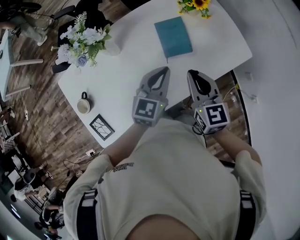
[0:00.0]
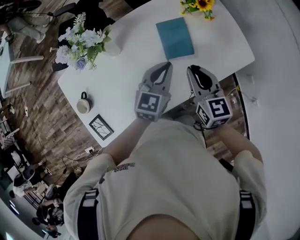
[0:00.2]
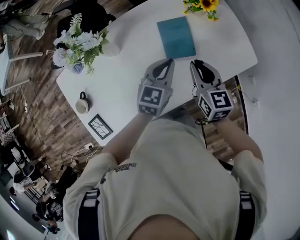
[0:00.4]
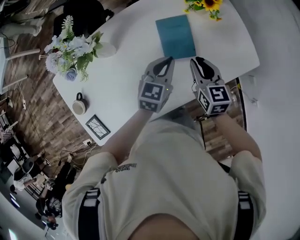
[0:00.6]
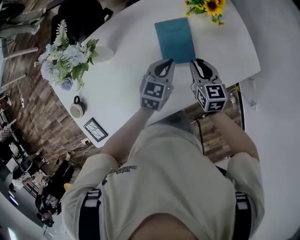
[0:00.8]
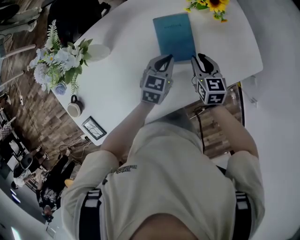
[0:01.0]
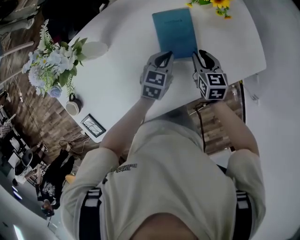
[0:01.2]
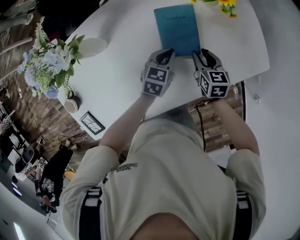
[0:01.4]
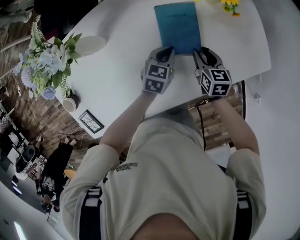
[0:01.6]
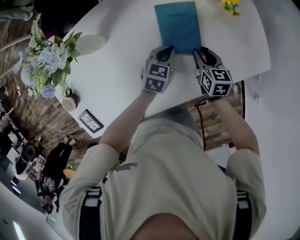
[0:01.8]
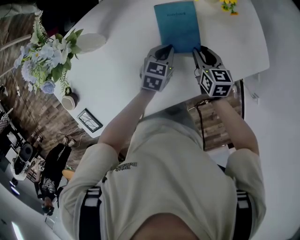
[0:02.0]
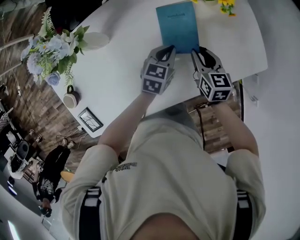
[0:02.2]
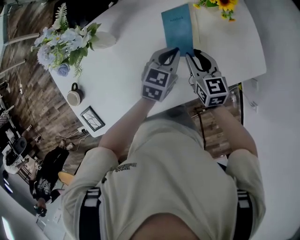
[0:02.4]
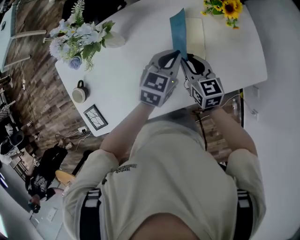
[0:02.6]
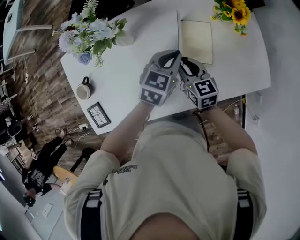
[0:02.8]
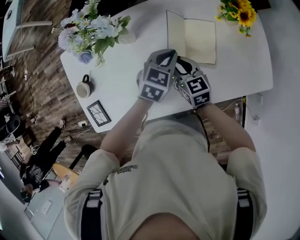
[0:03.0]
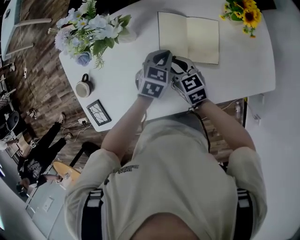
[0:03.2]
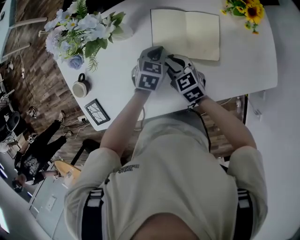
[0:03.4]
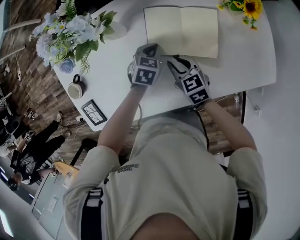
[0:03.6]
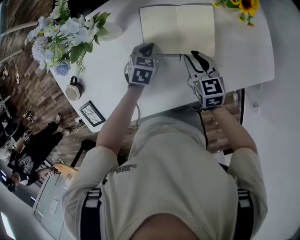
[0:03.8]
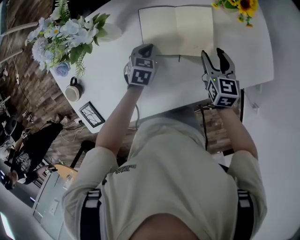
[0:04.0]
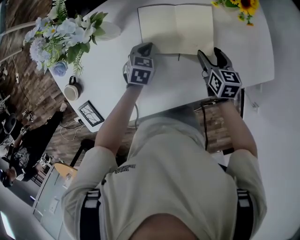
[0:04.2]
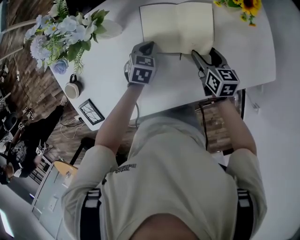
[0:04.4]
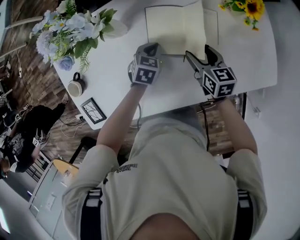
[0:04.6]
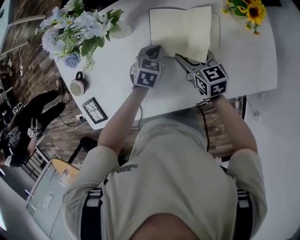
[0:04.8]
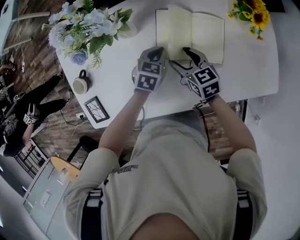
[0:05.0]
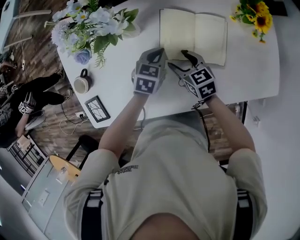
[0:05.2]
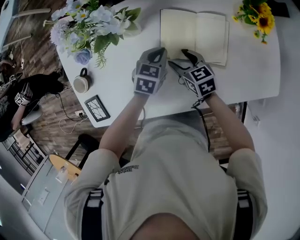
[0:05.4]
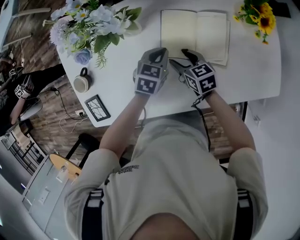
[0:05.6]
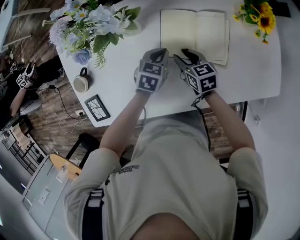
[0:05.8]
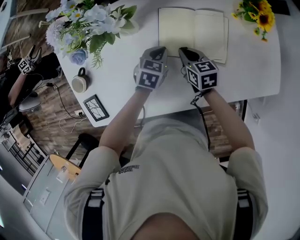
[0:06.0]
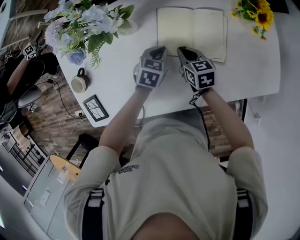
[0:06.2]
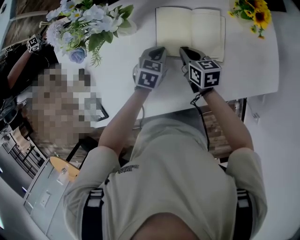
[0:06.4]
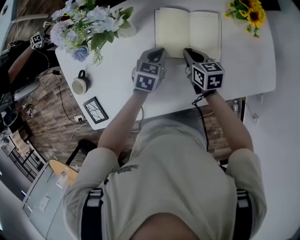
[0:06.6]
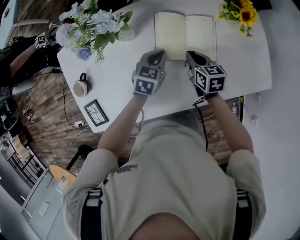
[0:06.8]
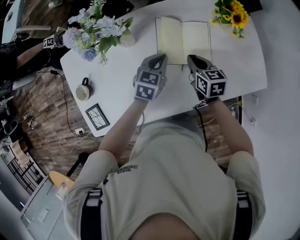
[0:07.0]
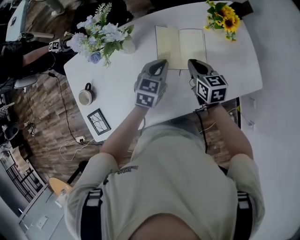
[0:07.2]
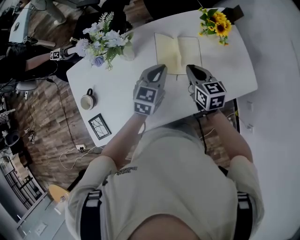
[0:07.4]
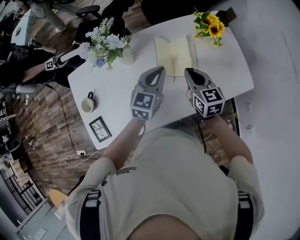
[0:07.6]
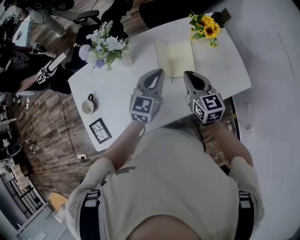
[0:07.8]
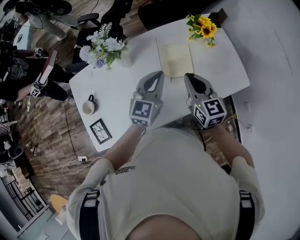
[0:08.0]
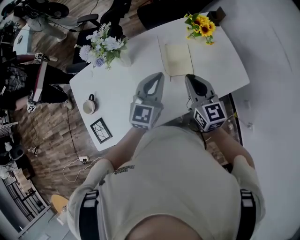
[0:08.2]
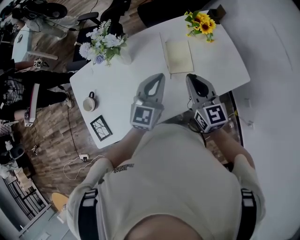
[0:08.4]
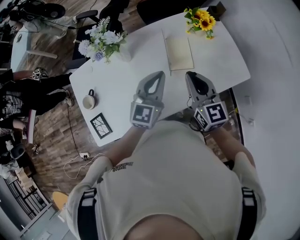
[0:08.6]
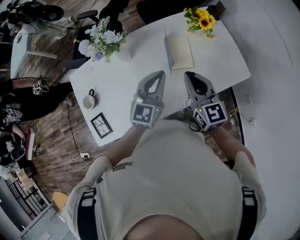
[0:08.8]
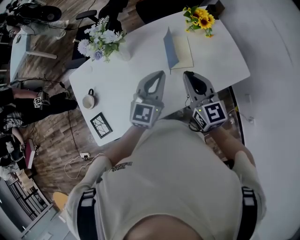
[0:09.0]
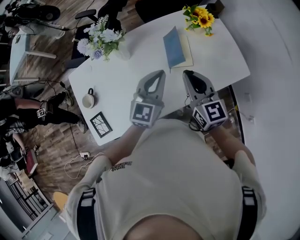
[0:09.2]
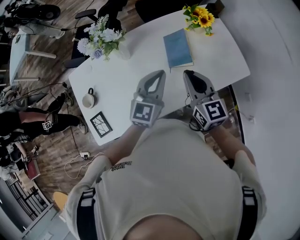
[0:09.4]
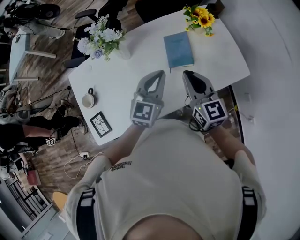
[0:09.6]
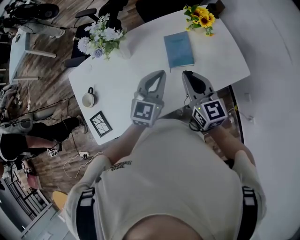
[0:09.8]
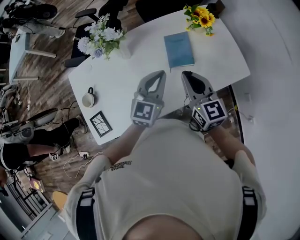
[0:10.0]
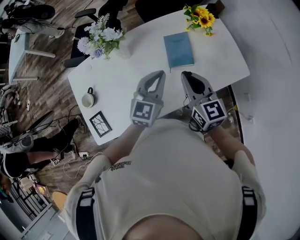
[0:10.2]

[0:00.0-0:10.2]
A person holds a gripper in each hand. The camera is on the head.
0.0 to 1.4 s: Both grippers travel together downward and forward, some 25 cm. The left gripper turns by roughly 20 degrees, while the right gripper changes its angle by approximately 20 degrees, and opens.
1.4 to 3.0 s: The right gripper is displaced to the left and upward by roughly 20 cm, and changes its angle by approximately 30 degrees. Meanwhile the left gripper goes some 15 cm upward and to the left.
3.0 to 4.4 s: The left gripper travels downward by about 15 cm. Meanwhile the right gripper is displaced to the right and downward by some 15 cm, swivels approximately 20 degrees, and opens.
4.4 to 5.8 s: The right gripper heads to the left, covering roughly 15 cm, rotates roughly 20 degrees, and closes its fingers.
5.8 to 7.2 s: Both grippers move upward and to the right, roughly 15 cm. The right gripper closes.
7.2 to 8.8 s: The grippers both shift upward and backward by roughly 20 cm. The left gripper swivels roughly 30 degrees; the right gripper rotates some 30 degrees.
8.8 to 10.2 s: There are only small adjustments of the grippers.

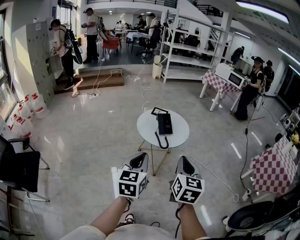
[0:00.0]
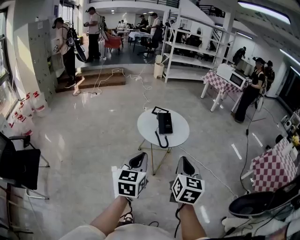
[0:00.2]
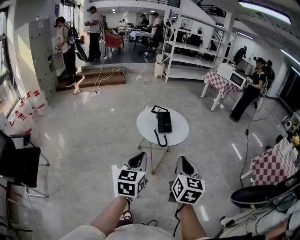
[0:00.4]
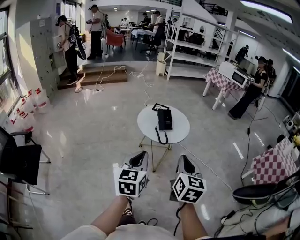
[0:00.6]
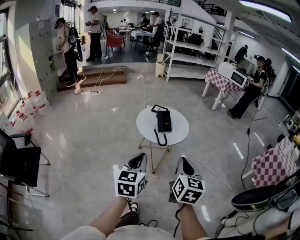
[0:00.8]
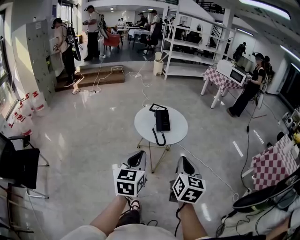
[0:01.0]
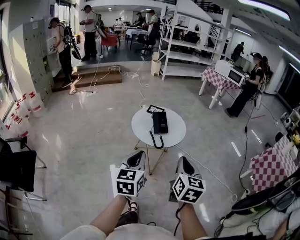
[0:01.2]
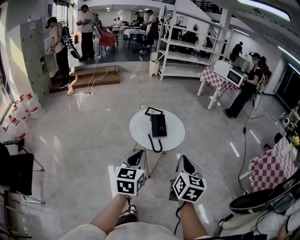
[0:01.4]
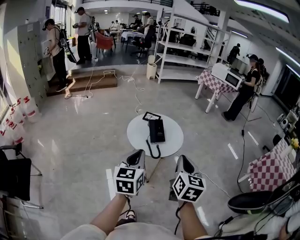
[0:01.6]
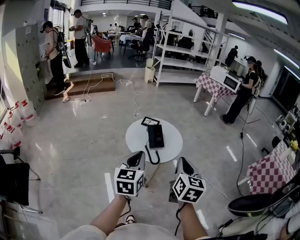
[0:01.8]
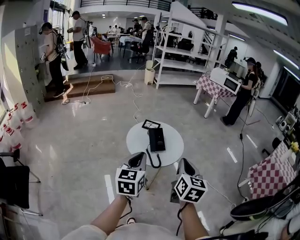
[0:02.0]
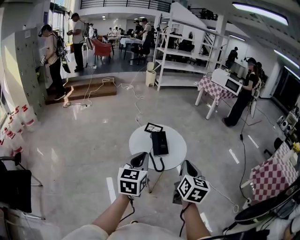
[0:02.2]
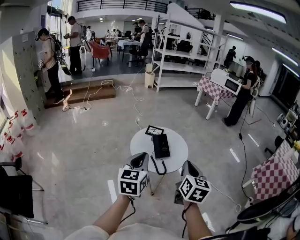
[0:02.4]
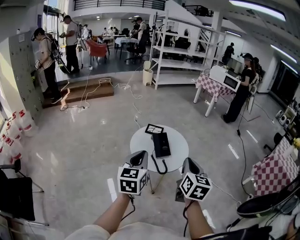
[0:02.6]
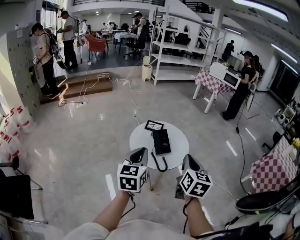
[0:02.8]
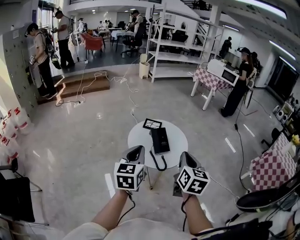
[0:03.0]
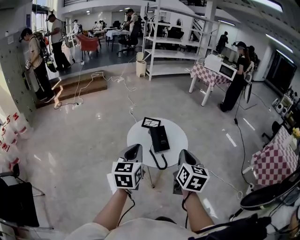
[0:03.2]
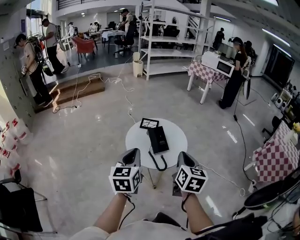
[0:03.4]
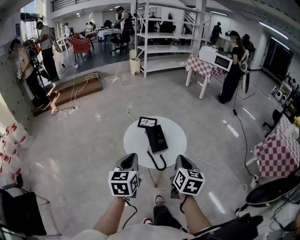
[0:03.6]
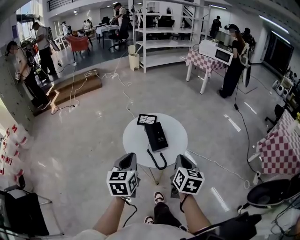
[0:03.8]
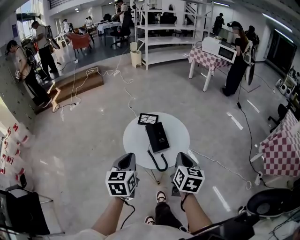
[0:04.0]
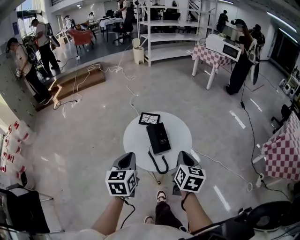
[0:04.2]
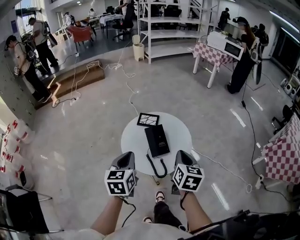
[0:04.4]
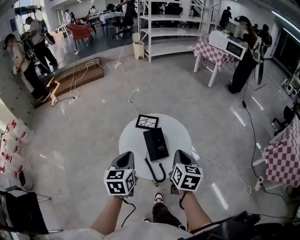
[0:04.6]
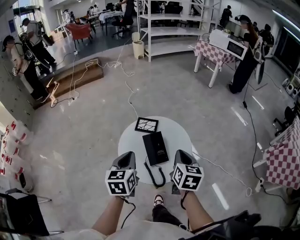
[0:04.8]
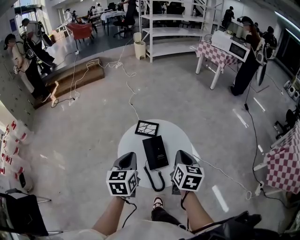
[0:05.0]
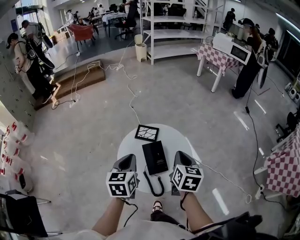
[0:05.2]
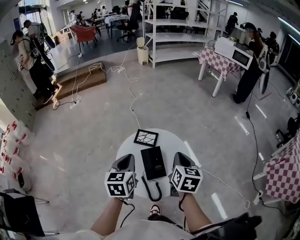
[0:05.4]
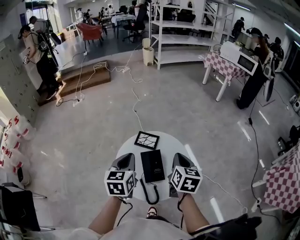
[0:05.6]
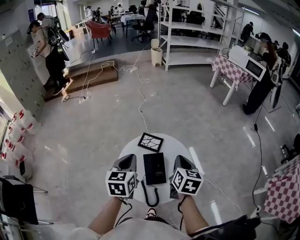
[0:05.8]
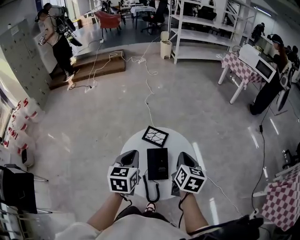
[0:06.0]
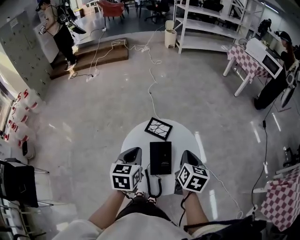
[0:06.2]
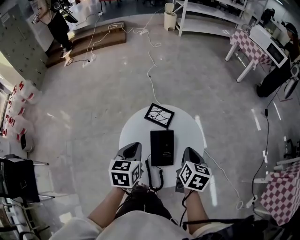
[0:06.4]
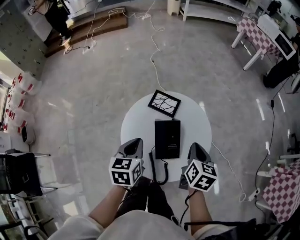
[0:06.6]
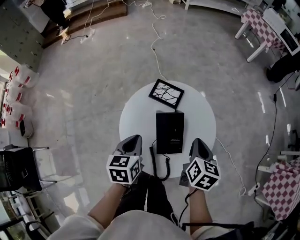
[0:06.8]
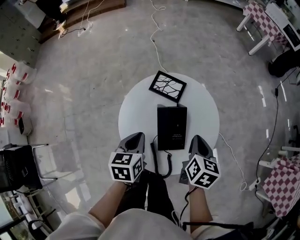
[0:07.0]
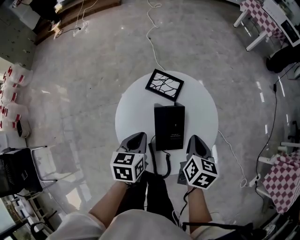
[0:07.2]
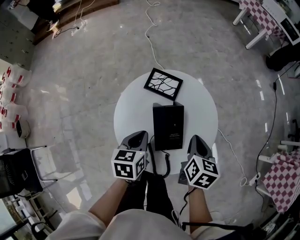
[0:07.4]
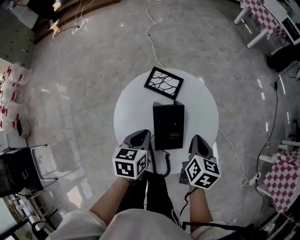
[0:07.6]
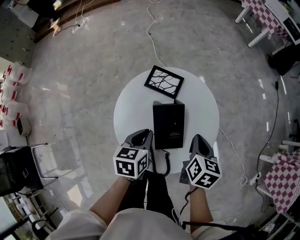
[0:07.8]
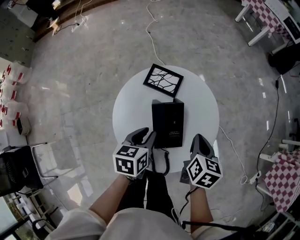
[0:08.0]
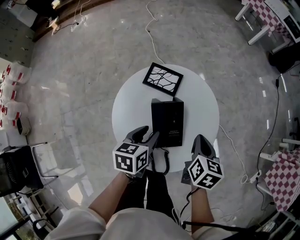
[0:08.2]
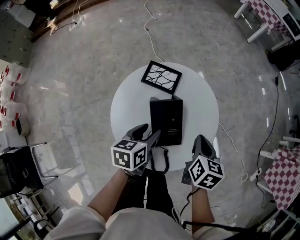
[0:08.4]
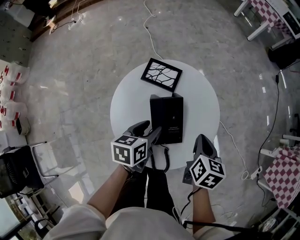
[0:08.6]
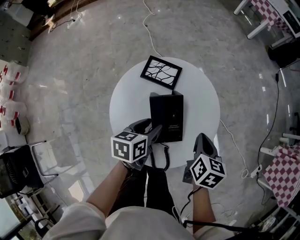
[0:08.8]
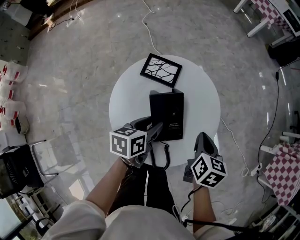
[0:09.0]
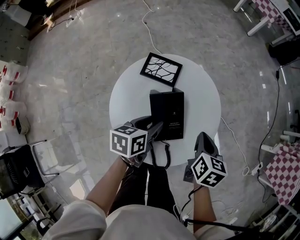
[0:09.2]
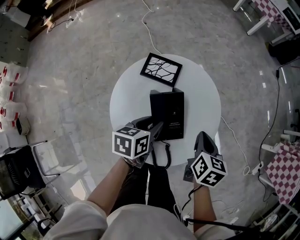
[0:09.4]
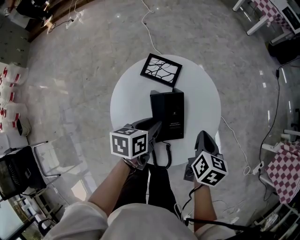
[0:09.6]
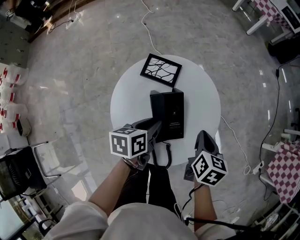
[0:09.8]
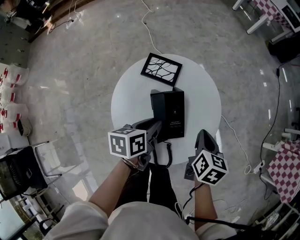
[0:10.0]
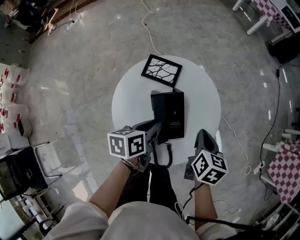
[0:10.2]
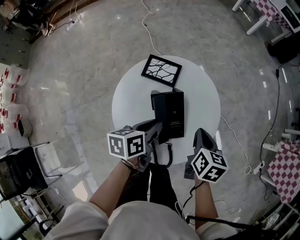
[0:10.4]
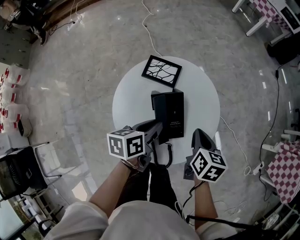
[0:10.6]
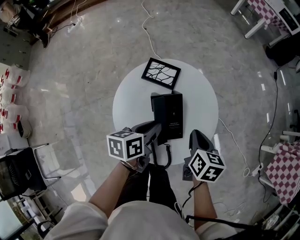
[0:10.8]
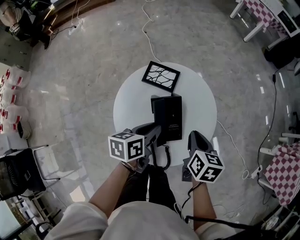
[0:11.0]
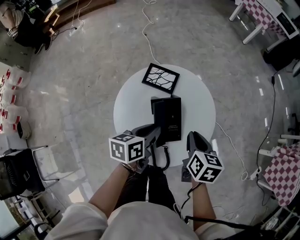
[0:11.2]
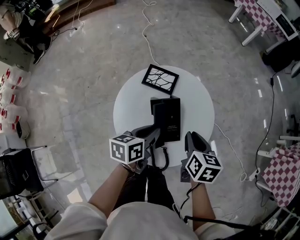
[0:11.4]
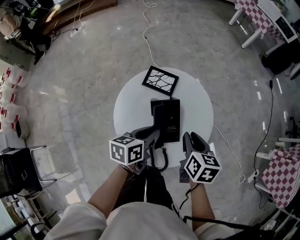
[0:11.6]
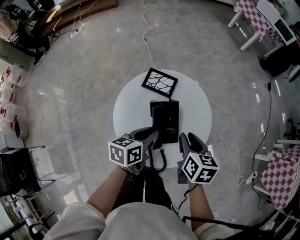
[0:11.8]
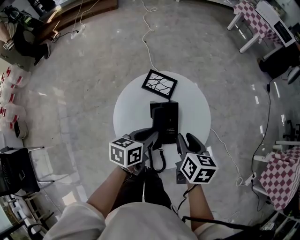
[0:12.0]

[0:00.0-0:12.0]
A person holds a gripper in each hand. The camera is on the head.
0.0 to 1.6 s: Both grippers move forward, roughly 10 cm.
1.6 to 3.0 s: The two grippers go about 10 cm forward and to the left.
3.0 to 4.4 s: Both grippers travel together forward and downward, roughly 15 cm.
4.4 to 6.0 s: Both grippers move forward, about 15 cm.
6.0 to 7.6 s: The two grippers go some 15 cm downward. The left gripper turns by roughly 20 degrees.
7.6 to 9.0 s: The left gripper changes place by roughly 5 cm, and opens up.
9.0 to 10.4 s: The left gripper closes its fingers.
10.4 to 12.0 s: The right gripper is displaced to the left by some 5 cm, and opens up.

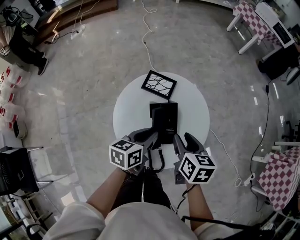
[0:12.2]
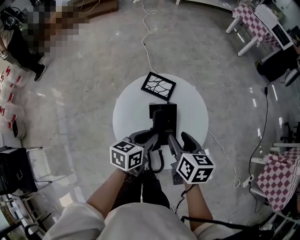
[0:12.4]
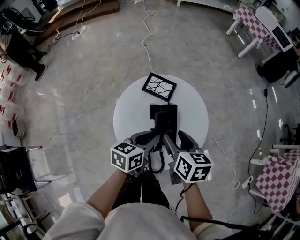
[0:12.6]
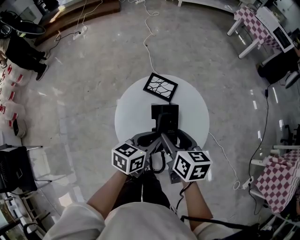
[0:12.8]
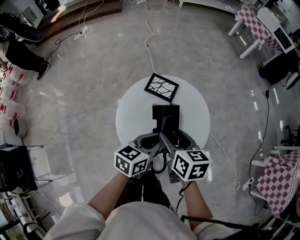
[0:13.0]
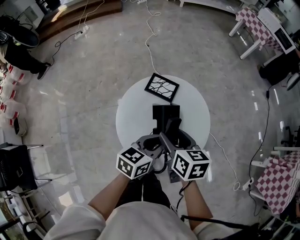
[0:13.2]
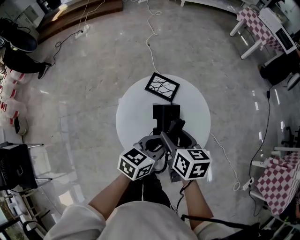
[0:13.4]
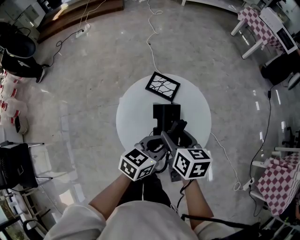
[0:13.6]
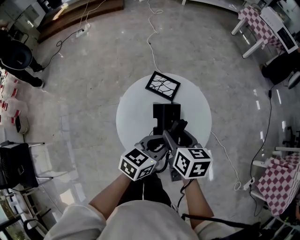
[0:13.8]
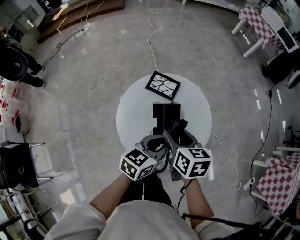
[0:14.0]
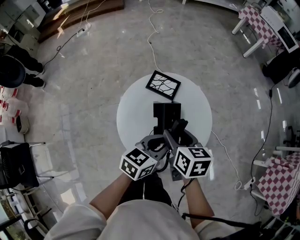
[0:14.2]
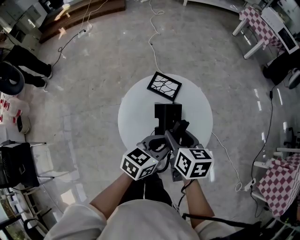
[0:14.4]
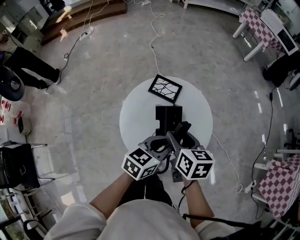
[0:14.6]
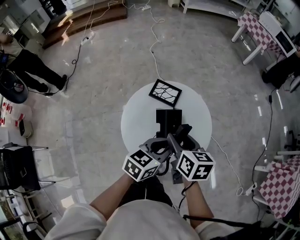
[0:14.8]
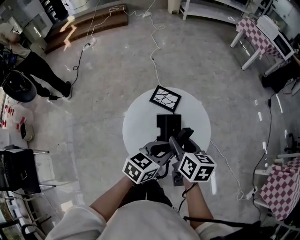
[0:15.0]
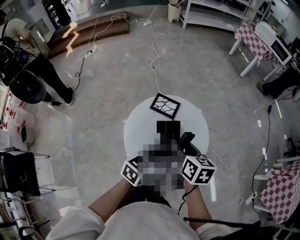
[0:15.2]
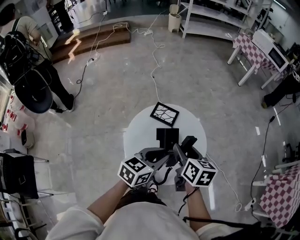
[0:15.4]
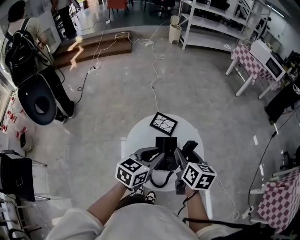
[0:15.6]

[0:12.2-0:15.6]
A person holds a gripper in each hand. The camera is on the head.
12.2 to 13.8 s: The right gripper travels to the left by about 5 cm; the left gripper heads to the right, covering about 5 cm.
13.8 to 15.6 s: The left gripper is displaced upward and to the left by roughly 10 cm; the right gripper heads upward, covering about 10 cm.
